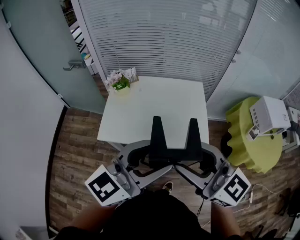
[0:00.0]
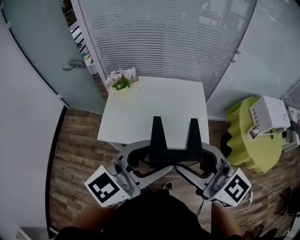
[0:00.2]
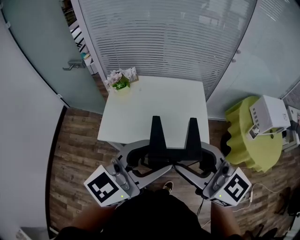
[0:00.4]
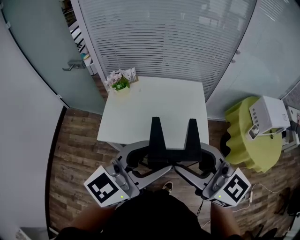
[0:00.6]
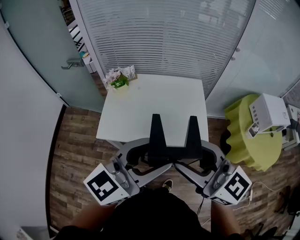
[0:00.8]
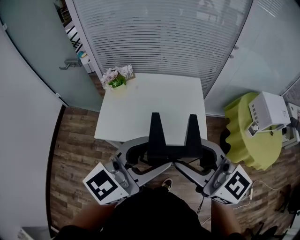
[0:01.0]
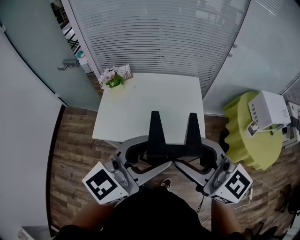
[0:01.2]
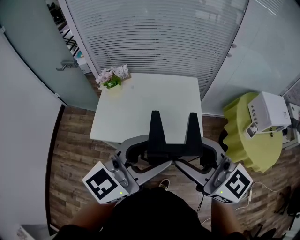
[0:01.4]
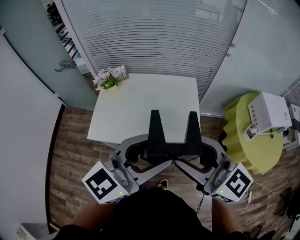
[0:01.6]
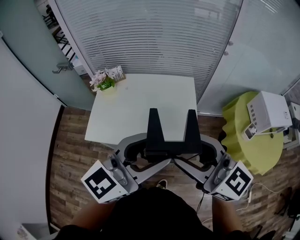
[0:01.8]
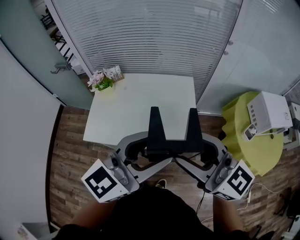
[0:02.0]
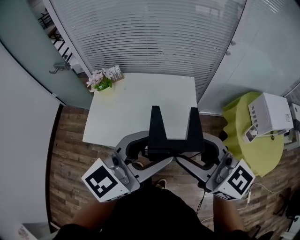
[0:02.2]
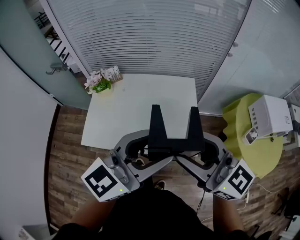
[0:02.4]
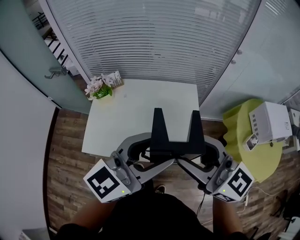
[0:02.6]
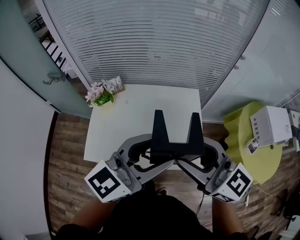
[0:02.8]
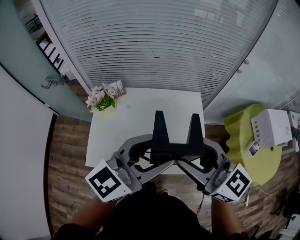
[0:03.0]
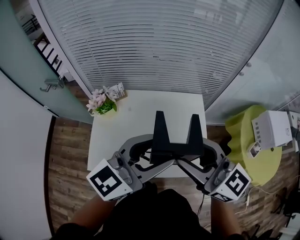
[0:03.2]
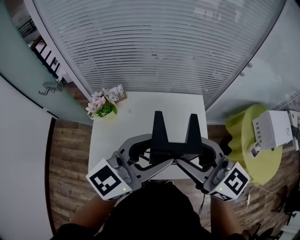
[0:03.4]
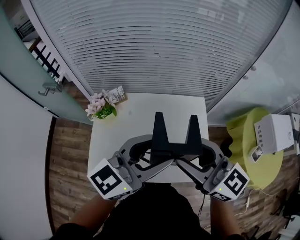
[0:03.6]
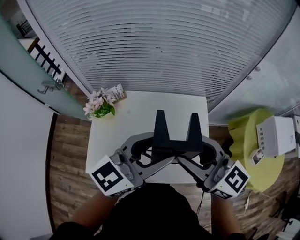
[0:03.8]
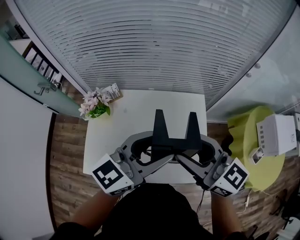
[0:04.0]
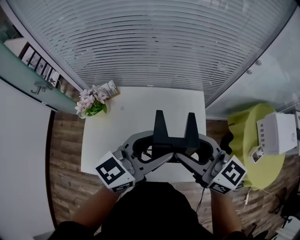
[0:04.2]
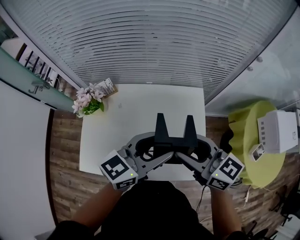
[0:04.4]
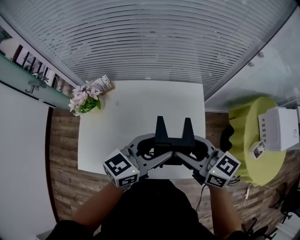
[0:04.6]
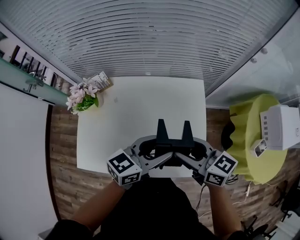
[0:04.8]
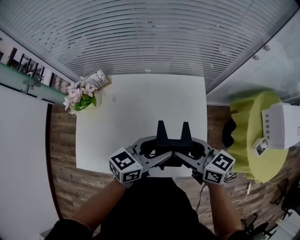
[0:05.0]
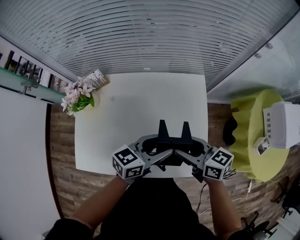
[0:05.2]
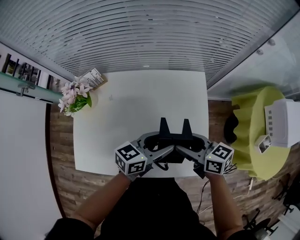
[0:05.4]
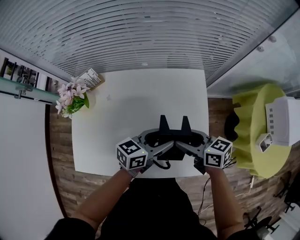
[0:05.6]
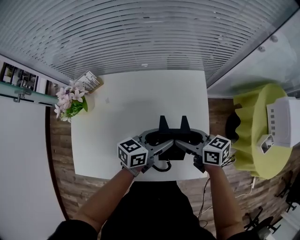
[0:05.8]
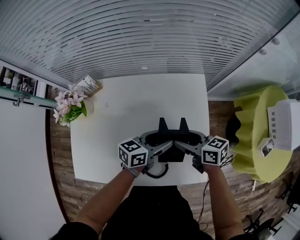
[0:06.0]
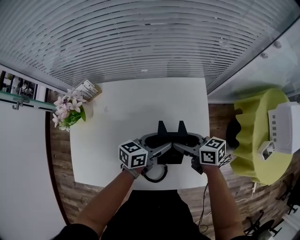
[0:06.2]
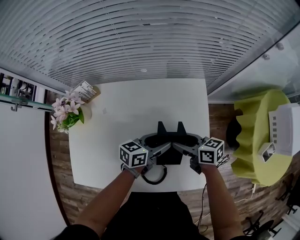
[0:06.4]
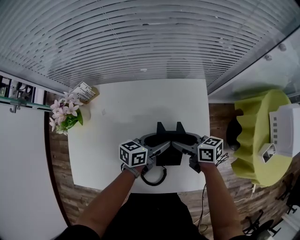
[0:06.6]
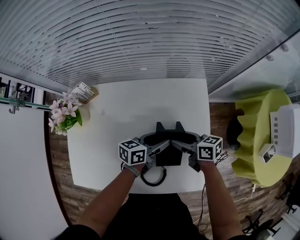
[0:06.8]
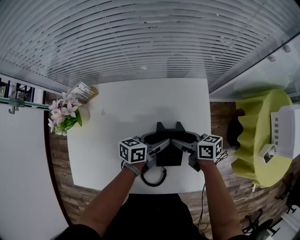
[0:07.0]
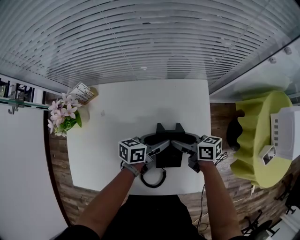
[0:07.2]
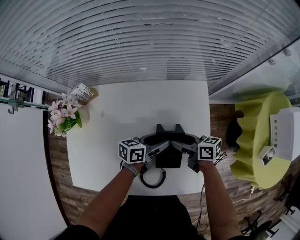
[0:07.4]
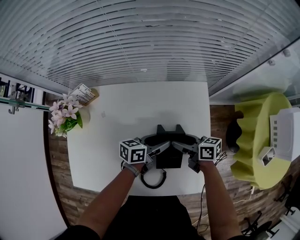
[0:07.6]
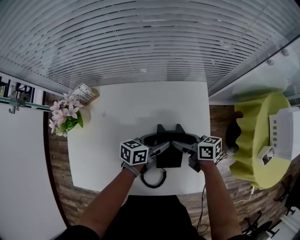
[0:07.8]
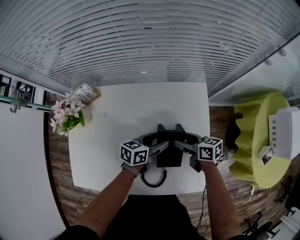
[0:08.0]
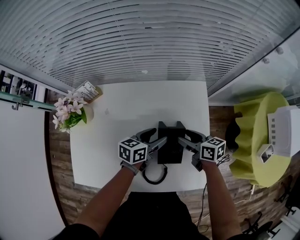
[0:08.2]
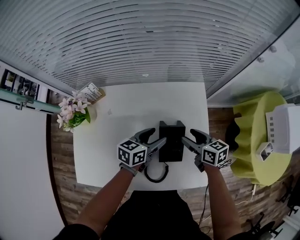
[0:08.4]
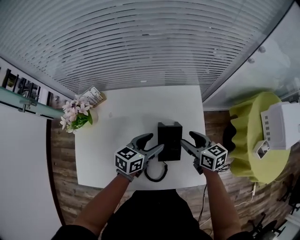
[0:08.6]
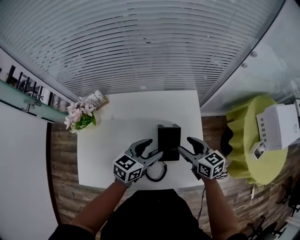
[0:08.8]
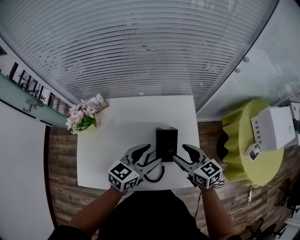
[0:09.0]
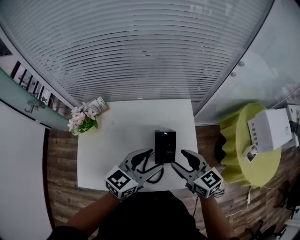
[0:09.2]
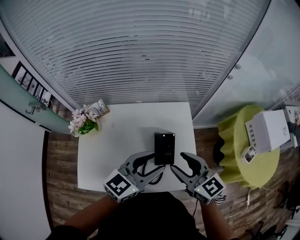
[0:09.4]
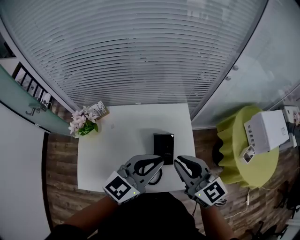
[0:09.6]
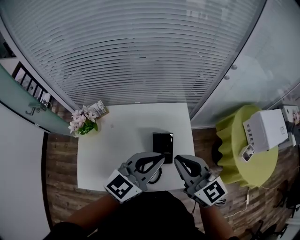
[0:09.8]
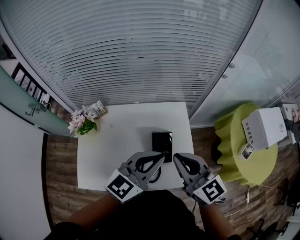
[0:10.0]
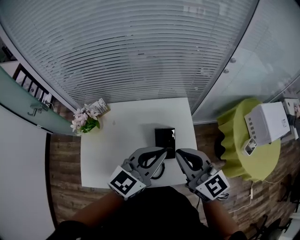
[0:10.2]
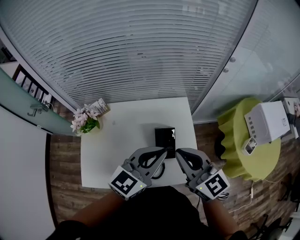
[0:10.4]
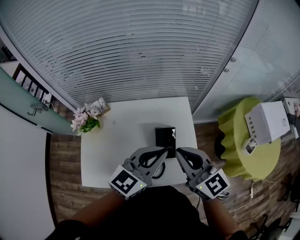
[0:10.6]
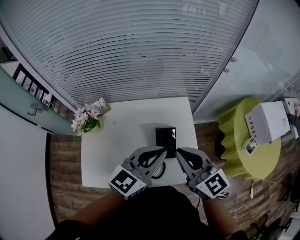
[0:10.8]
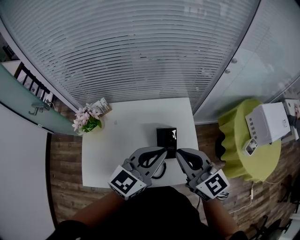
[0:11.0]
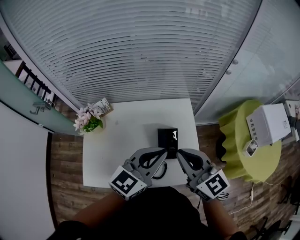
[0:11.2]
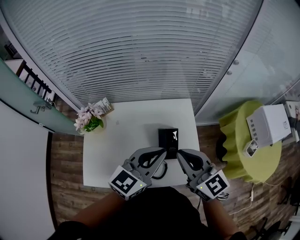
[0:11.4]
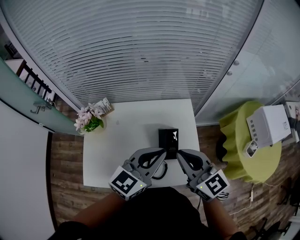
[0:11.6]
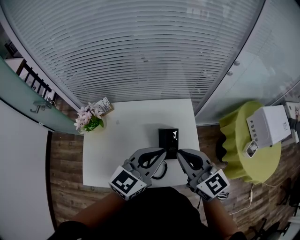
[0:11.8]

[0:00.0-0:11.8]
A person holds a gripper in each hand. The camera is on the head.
0:00.0 to 0:01.4: Both grippers move to the right, approximately 5 cm.
0:01.4 to 0:03.0: Both grippers travel together forward, roughly 20 cm.
0:03.0 to 0:04.4: The right gripper shifts some 20 cm forward and downward. The left gripper shifts approximately 15 cm downward and forward.
0:04.4 to 0:06.0: Both grippers travel together downward, roughly 25 cm. The right gripper turns by about 30 degrees. Meanwhile the left gripper turns by about 30 degrees.
0:06.0 to 0:07.4: The two grippers go some 5 cm downward.
0:07.4 to 0:08.8: Both grippers move upward, roughly 15 cm. The left gripper changes its angle by approximately 30 degrees; the right gripper changes its angle by roughly 30 degrees.
0:08.8 to 0:10.4: The left gripper shifts some 20 cm upward, turns by about 20 degrees, and closes its fingers; the right gripper heads upward and backward, covering roughly 25 cm, rotates some 30 degrees, and closes up.
0:10.4 to 0:11.8: The grippers stay close to where they were, moving slightly.

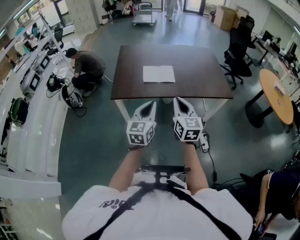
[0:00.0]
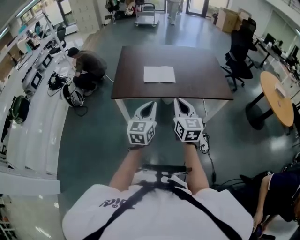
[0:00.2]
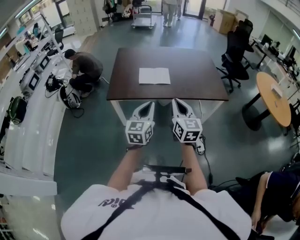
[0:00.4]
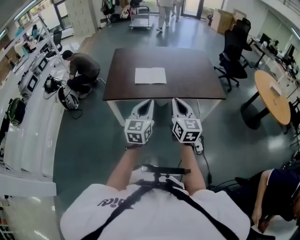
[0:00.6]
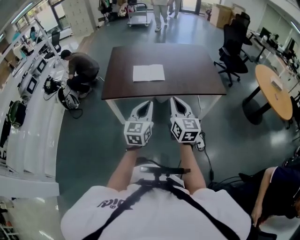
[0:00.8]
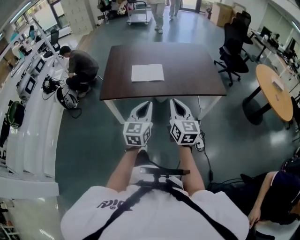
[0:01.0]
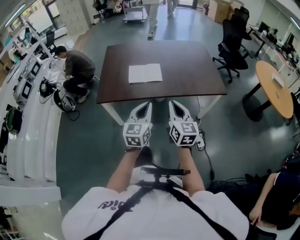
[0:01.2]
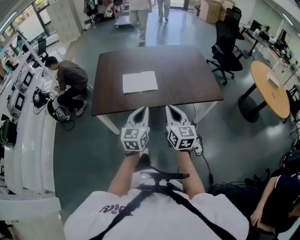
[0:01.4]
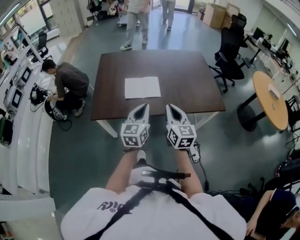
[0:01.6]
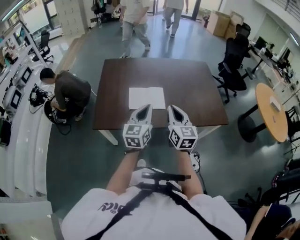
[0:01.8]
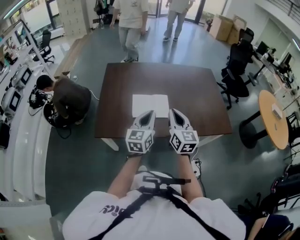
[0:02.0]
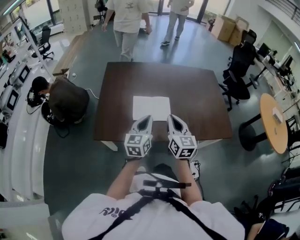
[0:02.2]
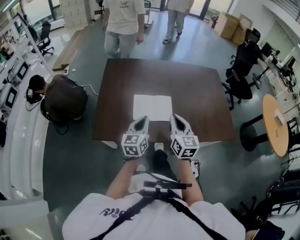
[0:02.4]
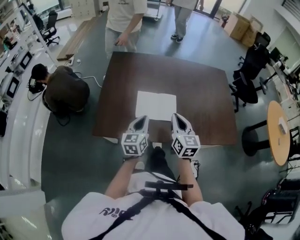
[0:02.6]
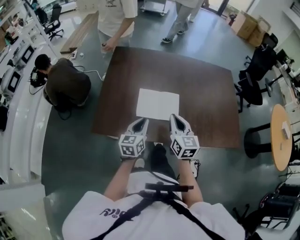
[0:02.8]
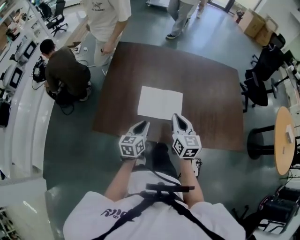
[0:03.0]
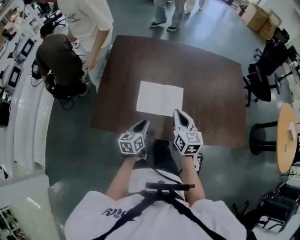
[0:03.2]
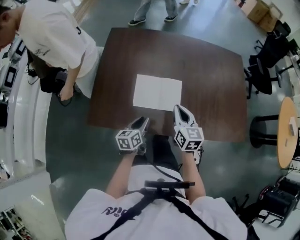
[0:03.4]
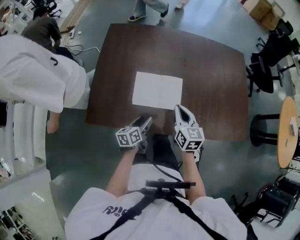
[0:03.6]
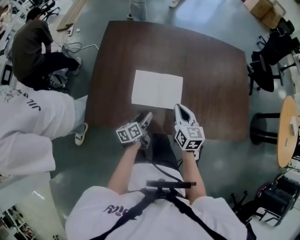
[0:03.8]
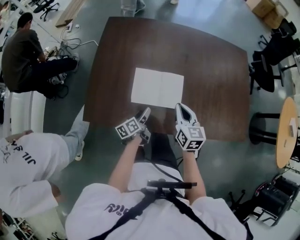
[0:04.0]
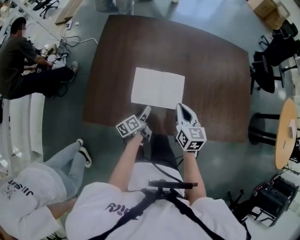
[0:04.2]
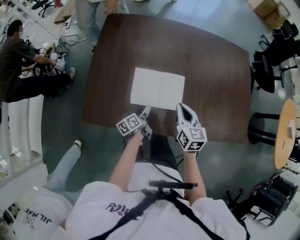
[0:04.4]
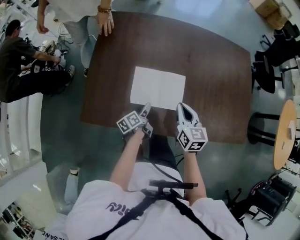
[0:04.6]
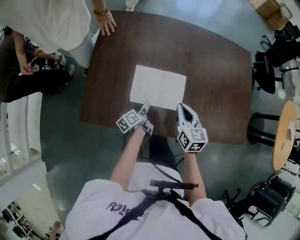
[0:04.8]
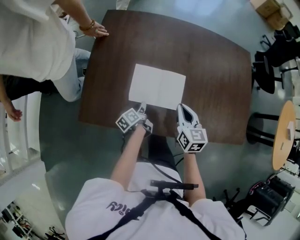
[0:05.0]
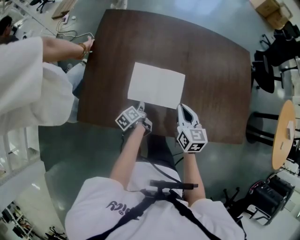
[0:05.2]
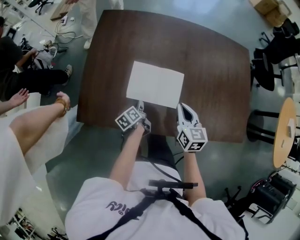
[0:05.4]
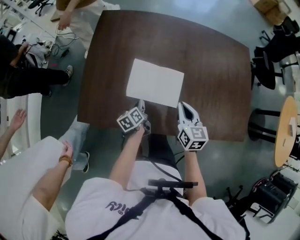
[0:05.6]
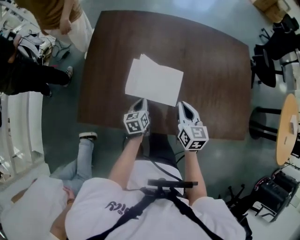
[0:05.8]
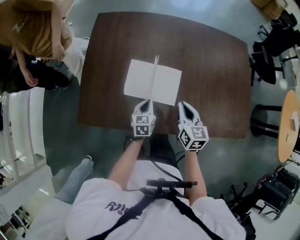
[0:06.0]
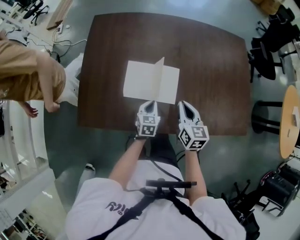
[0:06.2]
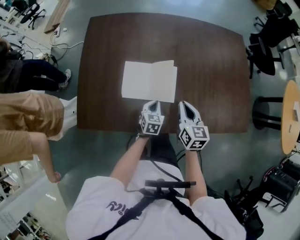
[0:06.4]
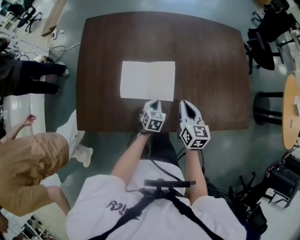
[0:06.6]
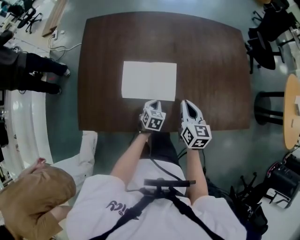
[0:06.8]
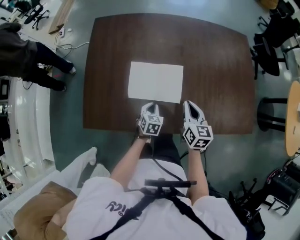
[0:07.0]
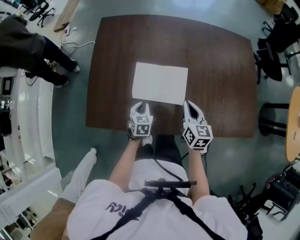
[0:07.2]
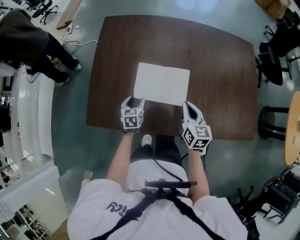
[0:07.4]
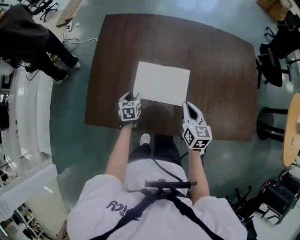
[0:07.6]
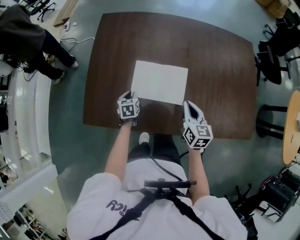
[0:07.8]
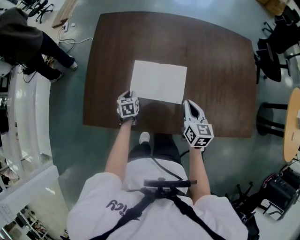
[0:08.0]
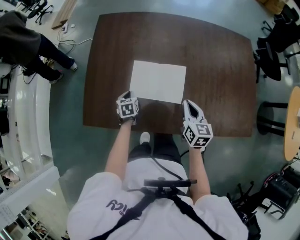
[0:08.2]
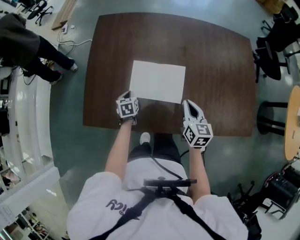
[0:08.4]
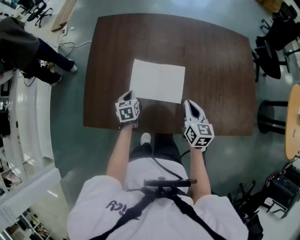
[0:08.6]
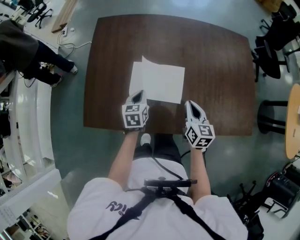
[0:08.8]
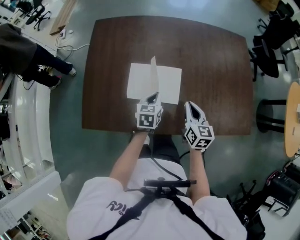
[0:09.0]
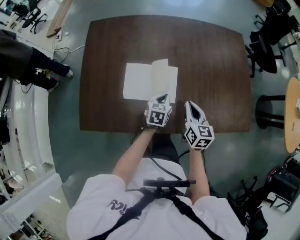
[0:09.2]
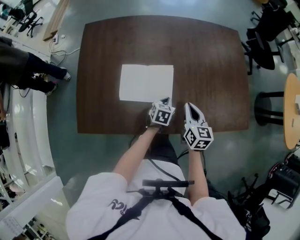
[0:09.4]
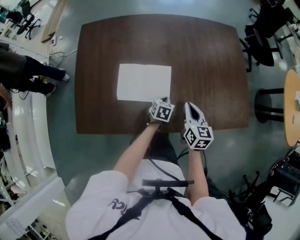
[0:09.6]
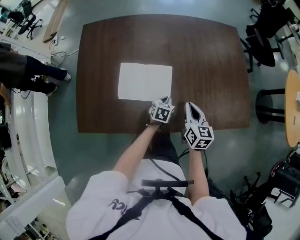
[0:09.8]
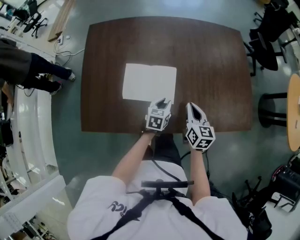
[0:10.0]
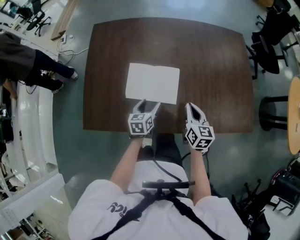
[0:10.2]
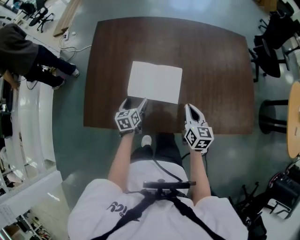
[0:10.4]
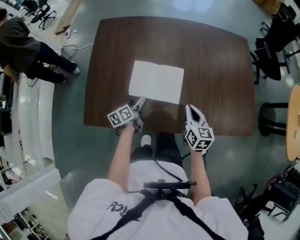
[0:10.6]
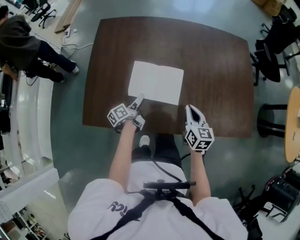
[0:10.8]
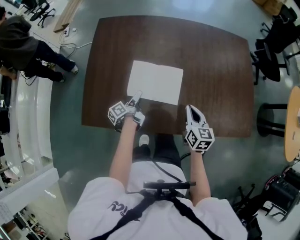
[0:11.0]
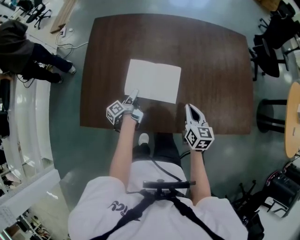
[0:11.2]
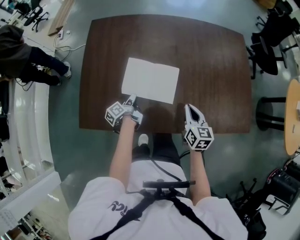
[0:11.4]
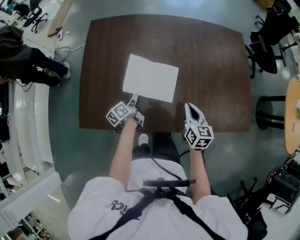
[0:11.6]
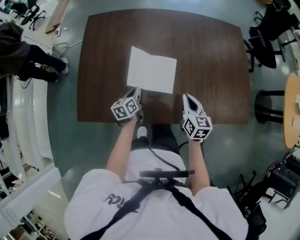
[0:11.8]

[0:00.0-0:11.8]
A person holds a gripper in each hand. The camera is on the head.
0:00.0 to 0:01.4: The left gripper moves forward and to the right, about 15 cm. The right gripper goes approximately 15 cm forward, to the right and downward.
0:01.4 to 0:03.0: The right gripper shifts about 35 cm forward. Meanwhile the left gripper shifts some 35 cm forward, downward and to the left, and swivels some 30 degrees.
0:03.0 to 0:04.4: The left gripper travels downward by approximately 20 cm, rolls counterclockwise, seen from behind, by approximately 40 degrees, and opens. The right gripper goes some 10 cm downward and forward.
0:04.4 to 0:06.0: The left gripper goes about 5 cm to the right, rolls clockwise, seen from behind, by about 50 degrees, and closes up.
0:06.0 to 0:07.4: The left gripper goes about 10 cm to the left, and opens its fingers.
0:07.4 to 0:08.8: The left gripper travels upward and to the right by approximately 10 cm, and closes its fingers.
0:08.8 to 0:10.4: The left gripper travels downward by approximately 5 cm, goes to the right and returns, about 20 cm each way, and opens.
0:10.4 to 0:11.8: The left gripper closes.
